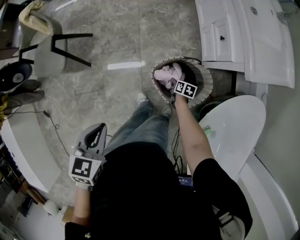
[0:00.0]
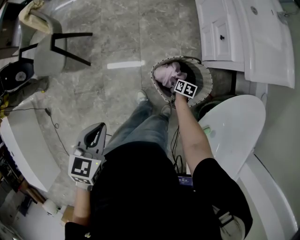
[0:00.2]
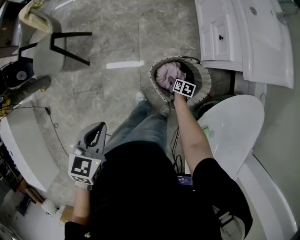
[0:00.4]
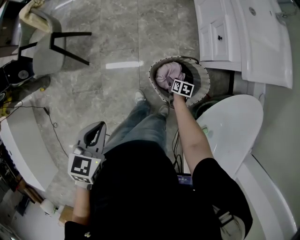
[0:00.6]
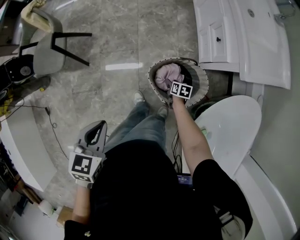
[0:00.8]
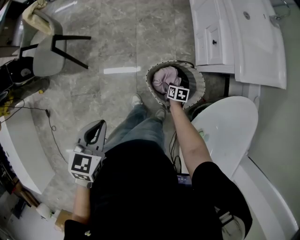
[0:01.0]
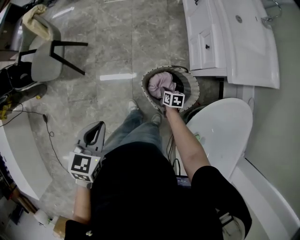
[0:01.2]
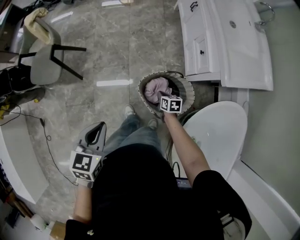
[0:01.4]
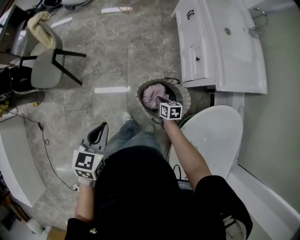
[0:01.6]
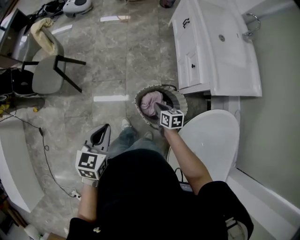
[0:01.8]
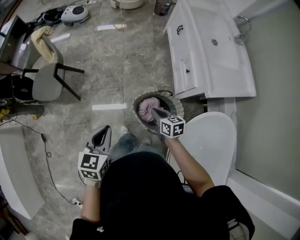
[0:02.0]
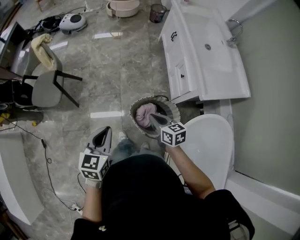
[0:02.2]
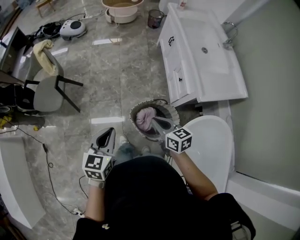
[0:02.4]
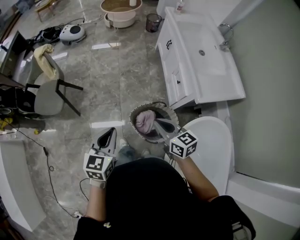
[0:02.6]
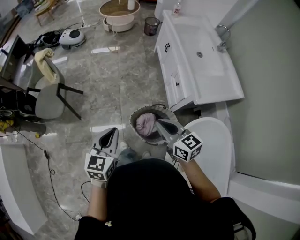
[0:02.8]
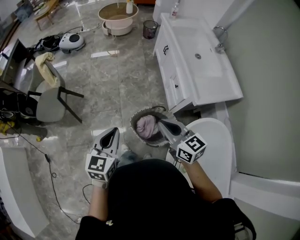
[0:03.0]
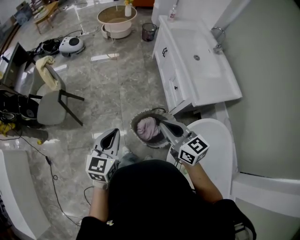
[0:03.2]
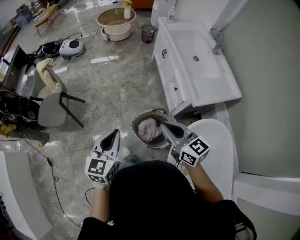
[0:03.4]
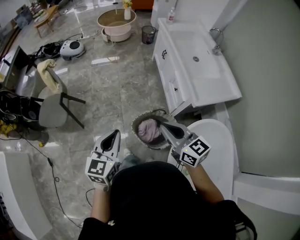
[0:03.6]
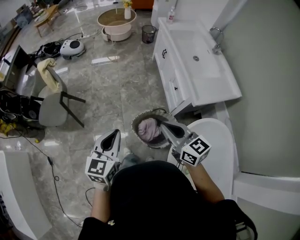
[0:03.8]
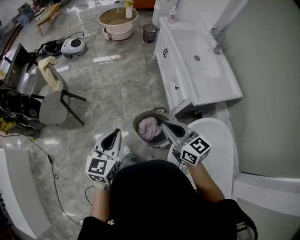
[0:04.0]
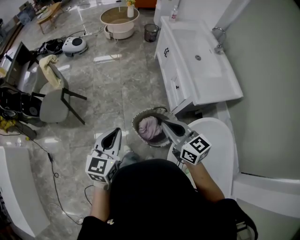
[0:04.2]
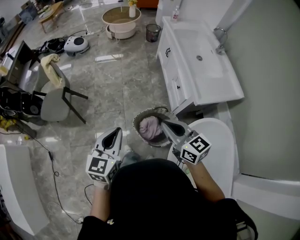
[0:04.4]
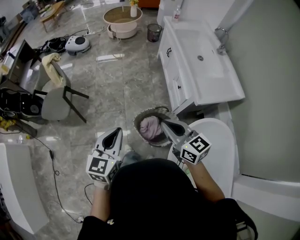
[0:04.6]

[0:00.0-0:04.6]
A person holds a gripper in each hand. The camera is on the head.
0:00.0 to 0:01.6: The right gripper goes approximately 20 cm upward, and turns by approximately 20 degrees; the left gripper shifts about 5 cm upward.
0:01.6 to 0:03.0: The right gripper is displaced upward by some 40 cm, and tilts its fingers roughly 30 degrees upward. Meanwhile the left gripper is displaced upward and to the right by approximately 15 cm.
0:03.0 to 0:04.6: There are only small adjustments of the grippers.

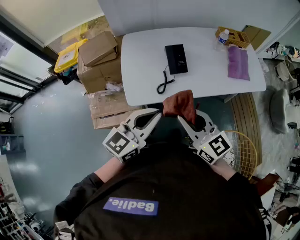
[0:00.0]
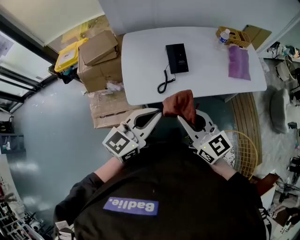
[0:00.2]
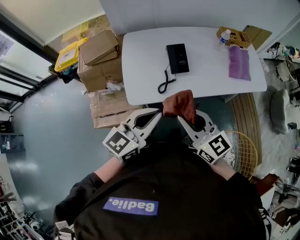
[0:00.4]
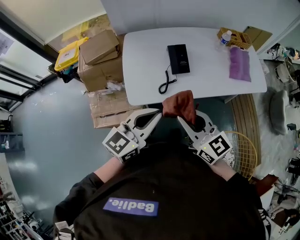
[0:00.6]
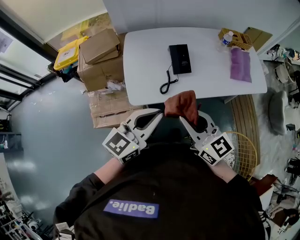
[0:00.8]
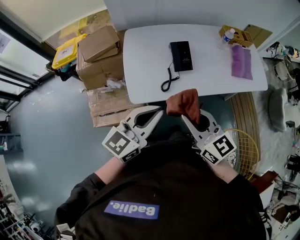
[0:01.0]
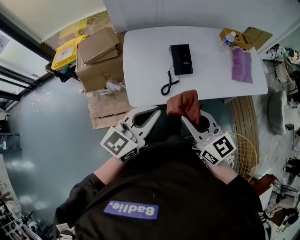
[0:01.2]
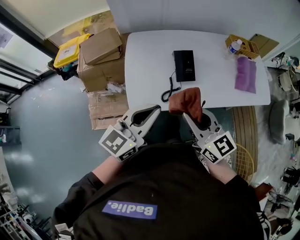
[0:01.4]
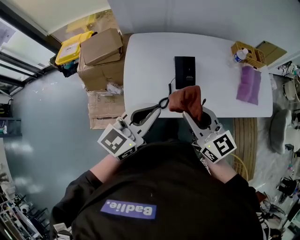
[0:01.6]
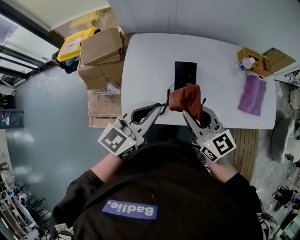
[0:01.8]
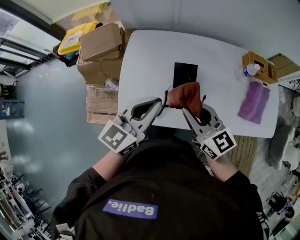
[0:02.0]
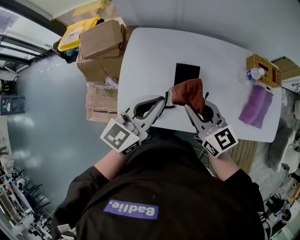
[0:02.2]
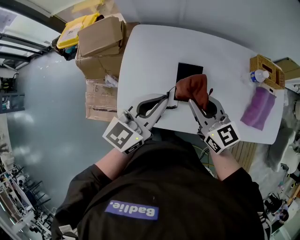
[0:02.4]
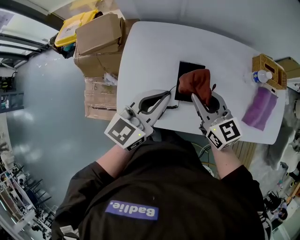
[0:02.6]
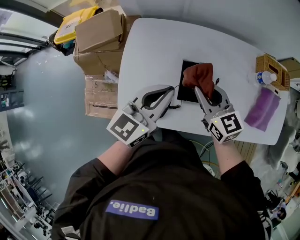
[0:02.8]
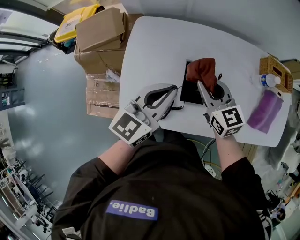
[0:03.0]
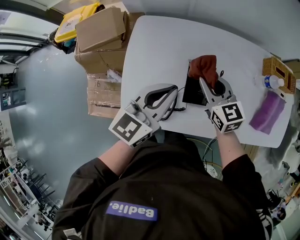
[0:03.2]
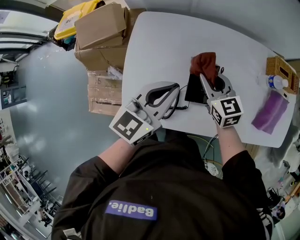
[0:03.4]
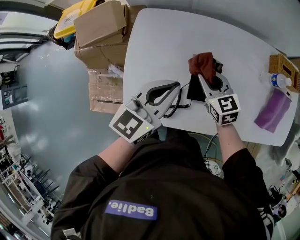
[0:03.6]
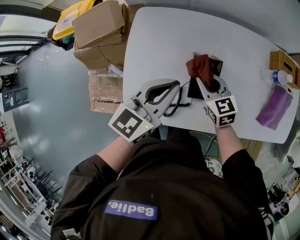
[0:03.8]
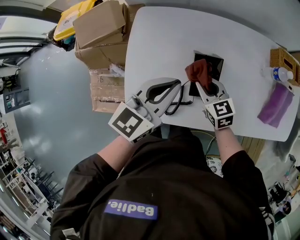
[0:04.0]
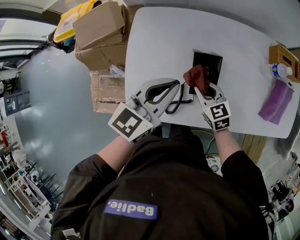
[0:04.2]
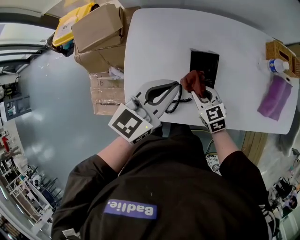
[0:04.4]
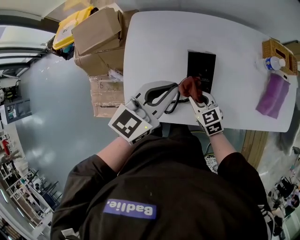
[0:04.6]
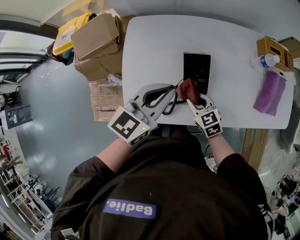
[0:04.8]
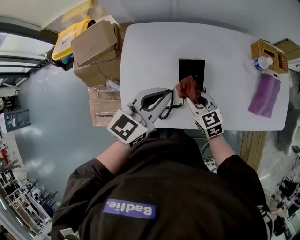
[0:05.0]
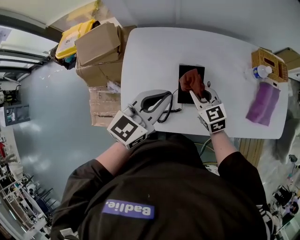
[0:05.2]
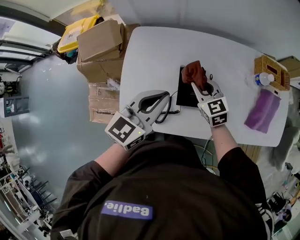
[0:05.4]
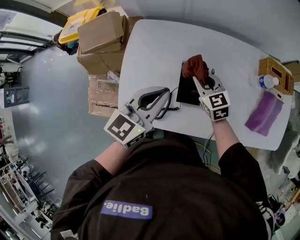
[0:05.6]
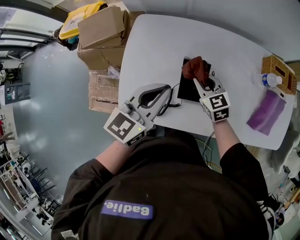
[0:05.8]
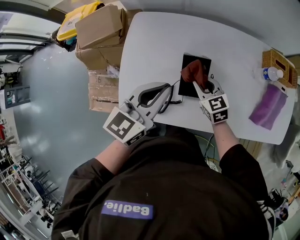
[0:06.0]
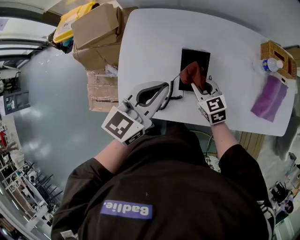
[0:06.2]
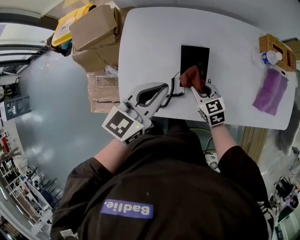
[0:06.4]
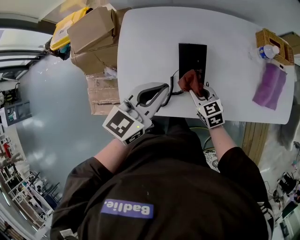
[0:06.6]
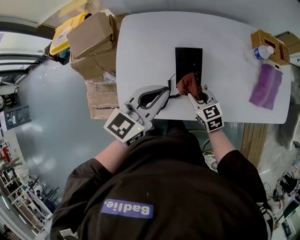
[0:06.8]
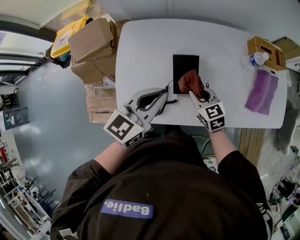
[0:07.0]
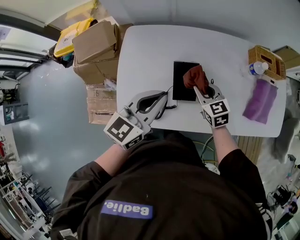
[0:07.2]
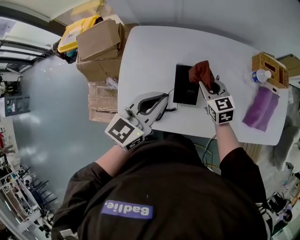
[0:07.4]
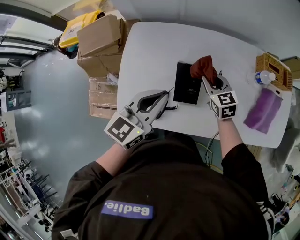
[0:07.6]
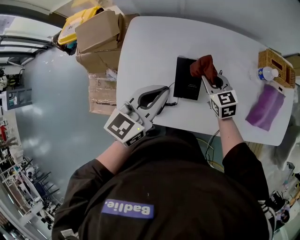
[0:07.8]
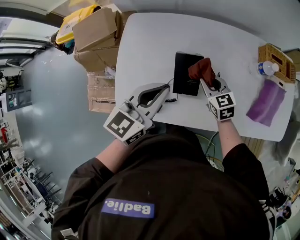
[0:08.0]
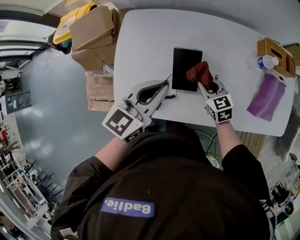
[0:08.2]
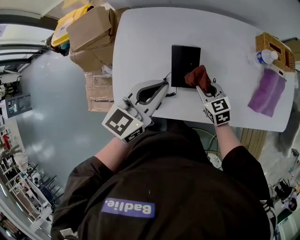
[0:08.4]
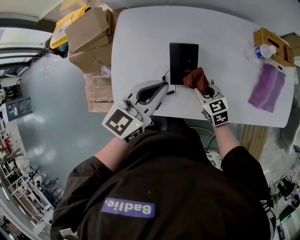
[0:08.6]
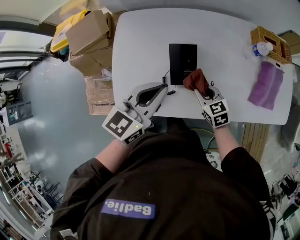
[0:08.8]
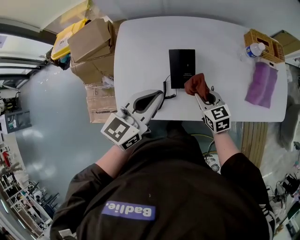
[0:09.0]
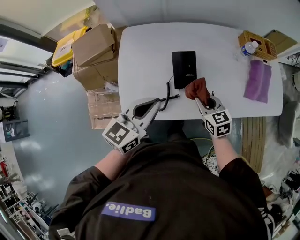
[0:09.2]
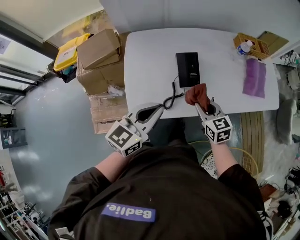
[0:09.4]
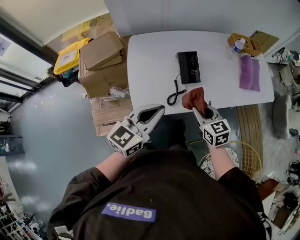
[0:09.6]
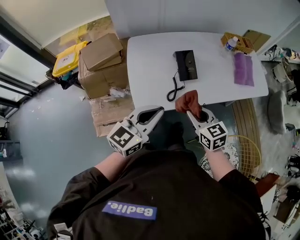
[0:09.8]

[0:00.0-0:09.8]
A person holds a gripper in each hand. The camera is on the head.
0:00.0 to 0:01.4: The two grippers go some 10 cm forward.
0:01.4 to 0:02.8: The right gripper is displaced forward and downward by approximately 30 cm. Meanwhile the left gripper shifts roughly 20 cm forward.
0:02.8 to 0:04.2: The right gripper goes about 15 cm downward.
0:04.2 to 0:05.6: The right gripper is displaced forward and upward by approximately 10 cm.
0:05.6 to 0:07.0: The right gripper moves backward, about 10 cm.
0:07.0 to 0:08.4: The right gripper heads downward, covering approximately 5 cm, and moves about 10 cm forward and comes back.
0:08.4 to 0:09.8: The left gripper shifts roughly 25 cm backward and to the left, and swivels roughly 20 degrees. Meanwhile the right gripper is displaced backward, upward and to the left by about 30 cm, and turns by some 20 degrees.

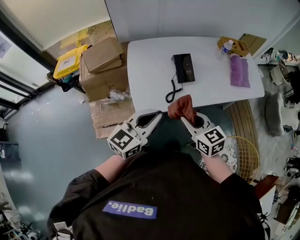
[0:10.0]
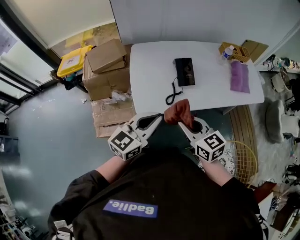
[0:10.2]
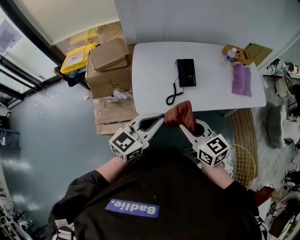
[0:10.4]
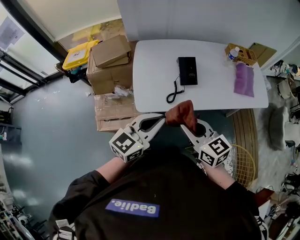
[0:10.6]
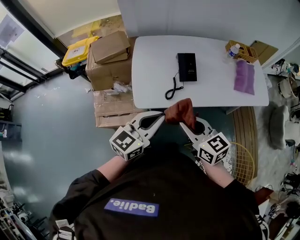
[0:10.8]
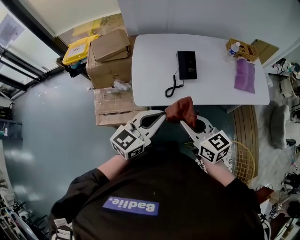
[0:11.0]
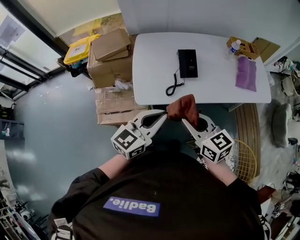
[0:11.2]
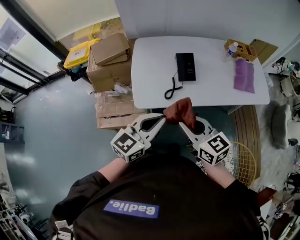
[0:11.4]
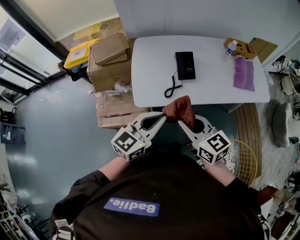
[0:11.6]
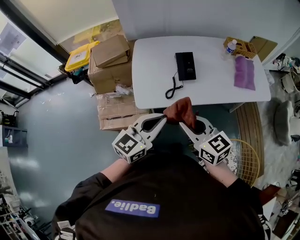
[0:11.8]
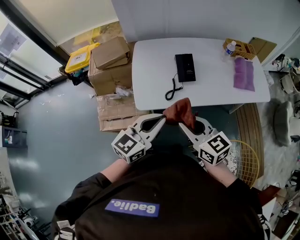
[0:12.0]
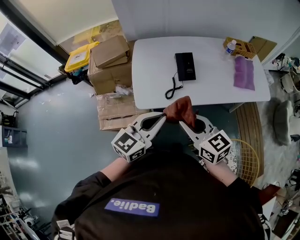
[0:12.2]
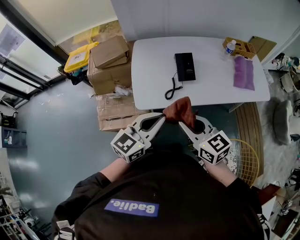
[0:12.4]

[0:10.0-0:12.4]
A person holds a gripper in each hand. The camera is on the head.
0:10.0 to 0:11.2: The left gripper is displaced to the right by roughly 5 cm, while the right gripper changes place by approximately 5 cm.
0:11.2 to 0:12.4: The grippers move only a little.

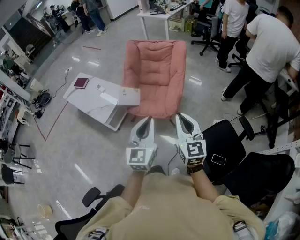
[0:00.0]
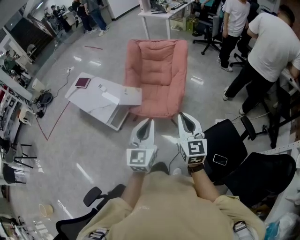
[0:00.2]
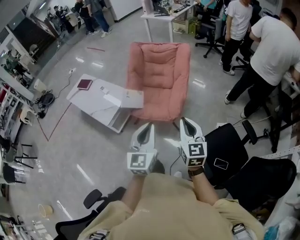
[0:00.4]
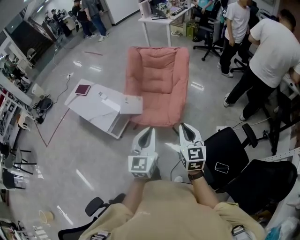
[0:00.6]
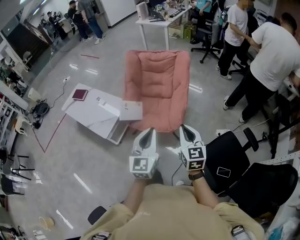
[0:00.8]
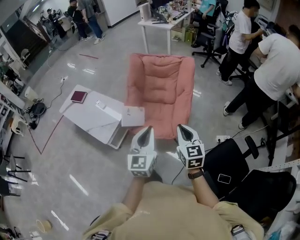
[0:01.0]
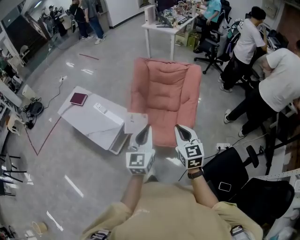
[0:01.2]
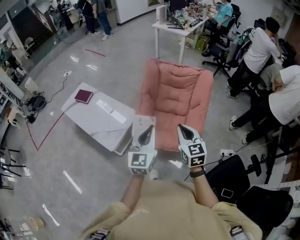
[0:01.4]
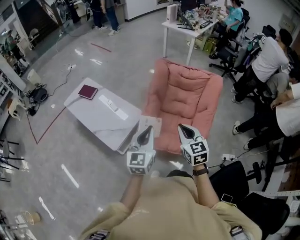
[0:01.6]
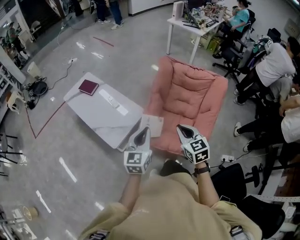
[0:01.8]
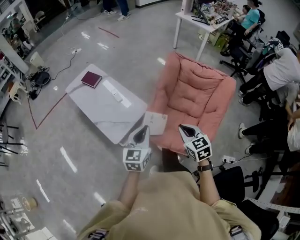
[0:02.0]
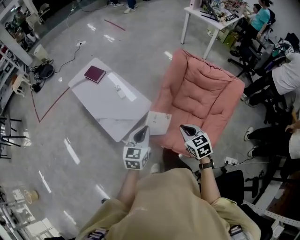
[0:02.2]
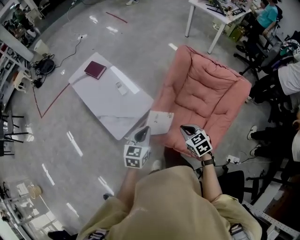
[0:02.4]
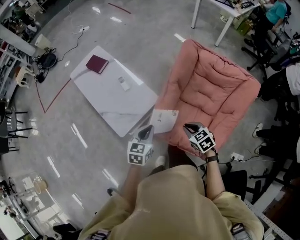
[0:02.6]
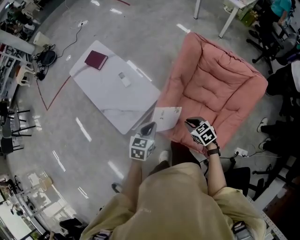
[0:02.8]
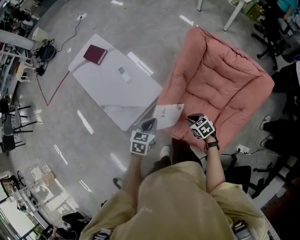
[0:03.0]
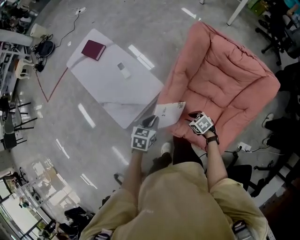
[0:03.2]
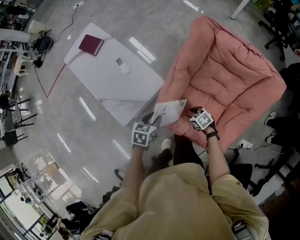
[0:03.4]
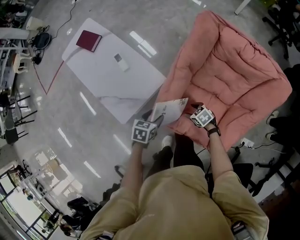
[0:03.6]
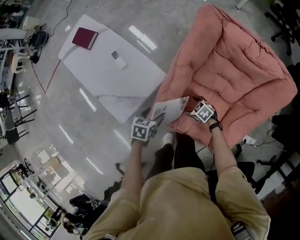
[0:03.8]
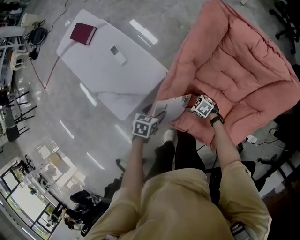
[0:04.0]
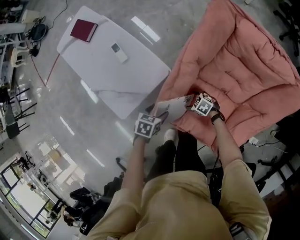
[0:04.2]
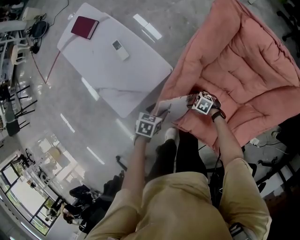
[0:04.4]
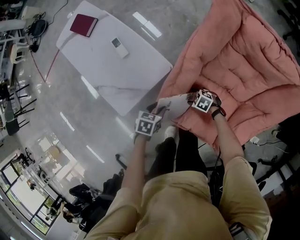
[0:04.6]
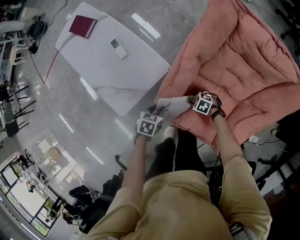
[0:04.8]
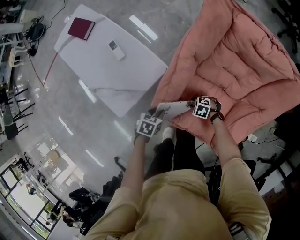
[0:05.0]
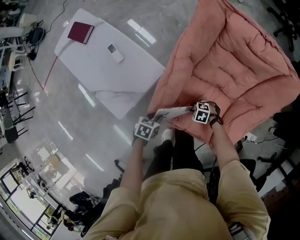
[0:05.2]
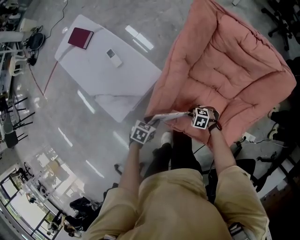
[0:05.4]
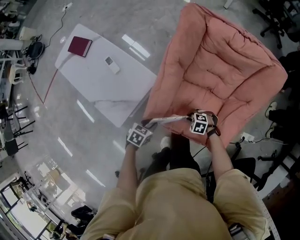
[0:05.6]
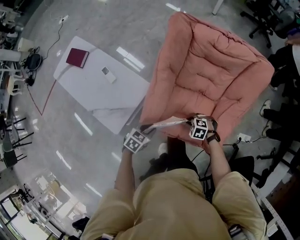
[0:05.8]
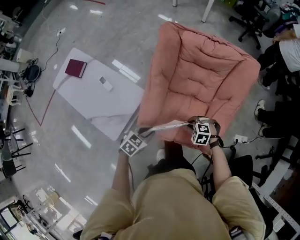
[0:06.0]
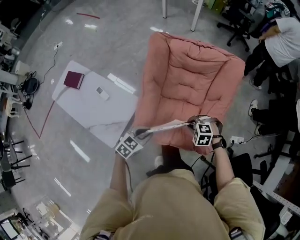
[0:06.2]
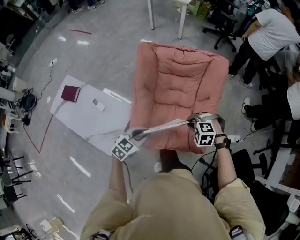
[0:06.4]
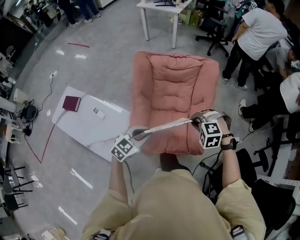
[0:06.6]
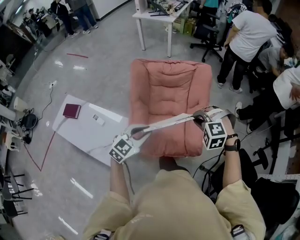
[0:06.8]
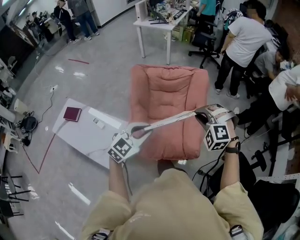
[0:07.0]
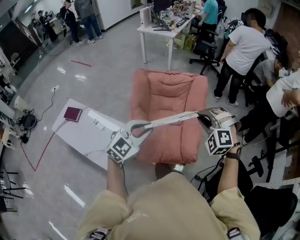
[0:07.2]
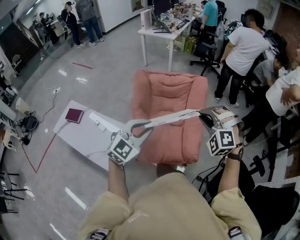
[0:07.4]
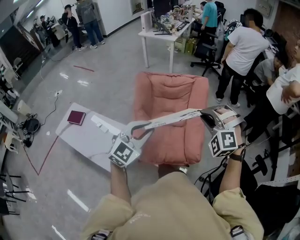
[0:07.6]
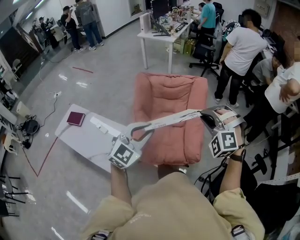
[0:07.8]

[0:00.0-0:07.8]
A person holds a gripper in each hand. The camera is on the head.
0:00.0 to 0:01.6: Both grippers are carried forward and to the left, roughly 40 cm. The right gripper changes its angle by some 20 degrees.
0:01.6 to 0:03.2: Both grippers move downward, approximately 35 cm. The left gripper points its fingers roughly 40 degrees further downward. The right gripper tilts its fingers roughly 40 degrees downward, and opens.
0:03.2 to 0:04.6: The two grippers go approximately 20 cm downward. The right gripper swivels about 30 degrees, and opens its fingers. The left gripper opens its fingers.
0:04.6 to 0:06.2: Both grippers travel together upward, some 25 cm. The right gripper changes its angle by roughly 30 degrees, and closes its fingers; the left gripper rolls clockwise, seen from behind, by about 40 degrees.
0:06.2 to 0:07.8: Both grippers travel together upward, some 35 cm. The left gripper rotates approximately 50 degrees. The right gripper points its fingers some 40 degrees further upward.
